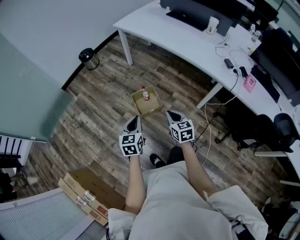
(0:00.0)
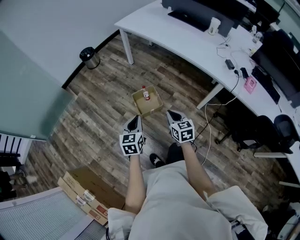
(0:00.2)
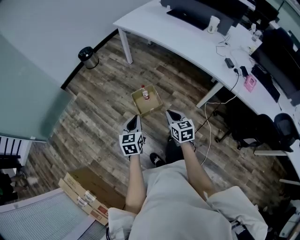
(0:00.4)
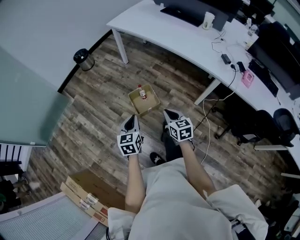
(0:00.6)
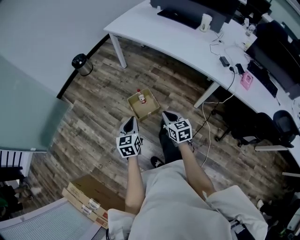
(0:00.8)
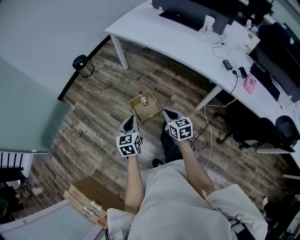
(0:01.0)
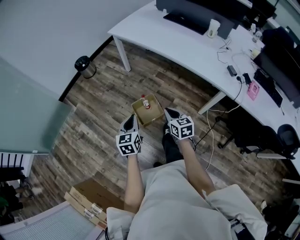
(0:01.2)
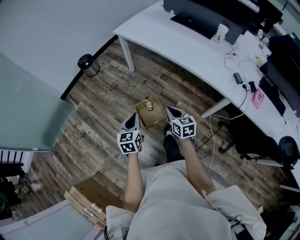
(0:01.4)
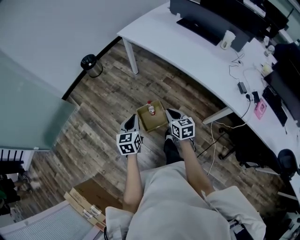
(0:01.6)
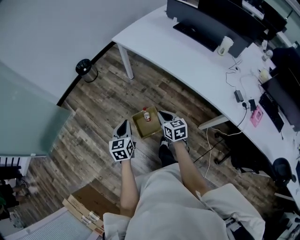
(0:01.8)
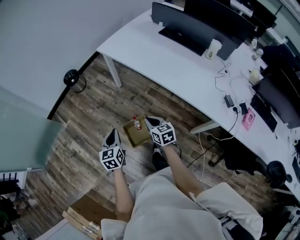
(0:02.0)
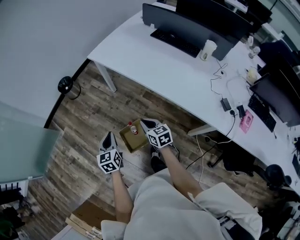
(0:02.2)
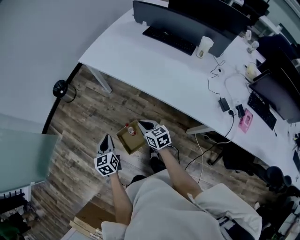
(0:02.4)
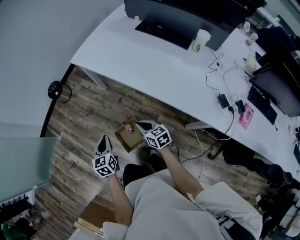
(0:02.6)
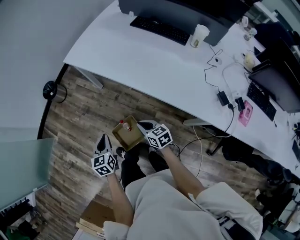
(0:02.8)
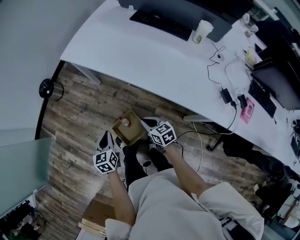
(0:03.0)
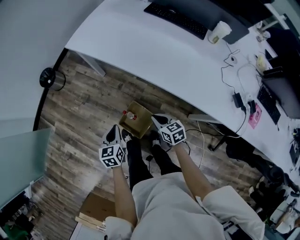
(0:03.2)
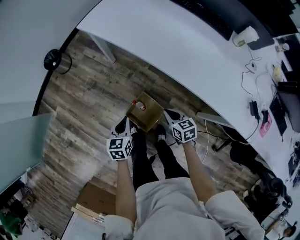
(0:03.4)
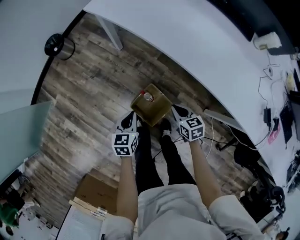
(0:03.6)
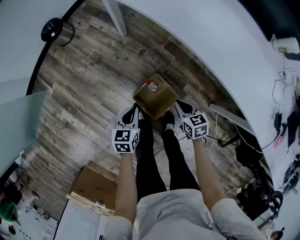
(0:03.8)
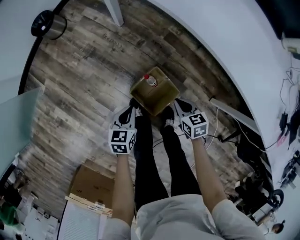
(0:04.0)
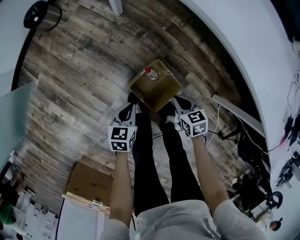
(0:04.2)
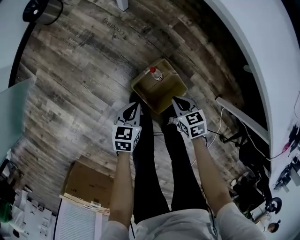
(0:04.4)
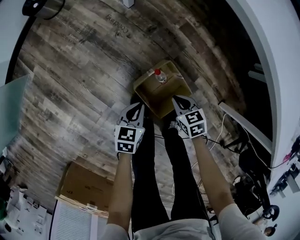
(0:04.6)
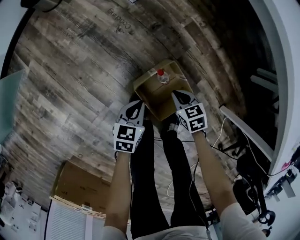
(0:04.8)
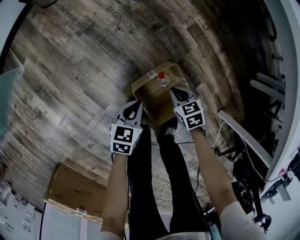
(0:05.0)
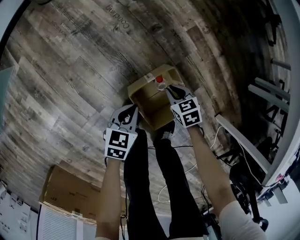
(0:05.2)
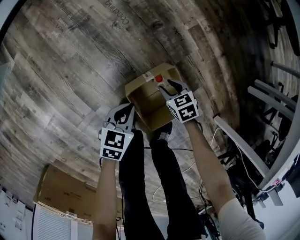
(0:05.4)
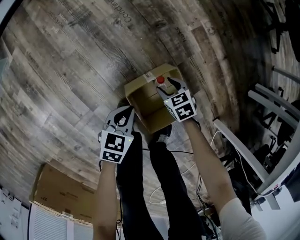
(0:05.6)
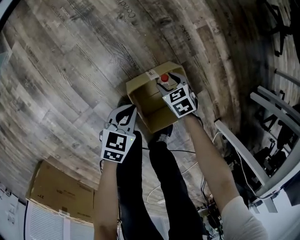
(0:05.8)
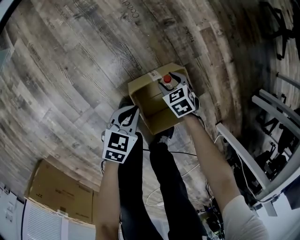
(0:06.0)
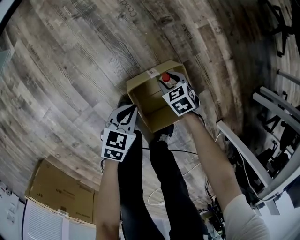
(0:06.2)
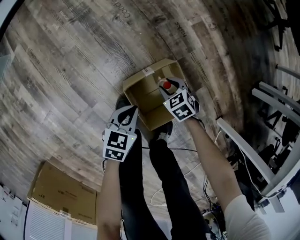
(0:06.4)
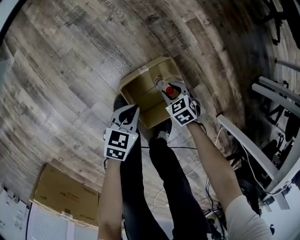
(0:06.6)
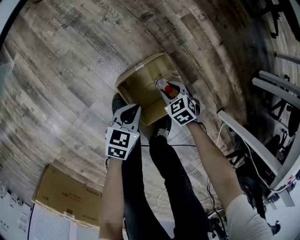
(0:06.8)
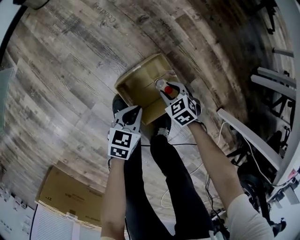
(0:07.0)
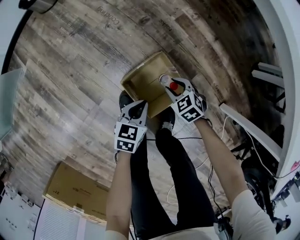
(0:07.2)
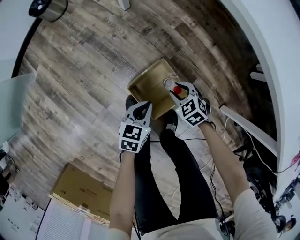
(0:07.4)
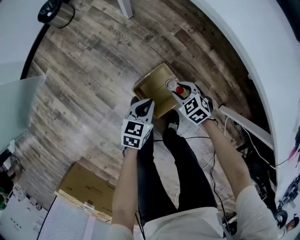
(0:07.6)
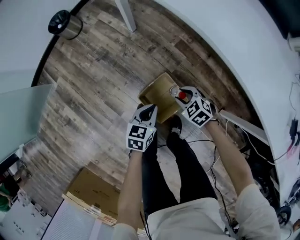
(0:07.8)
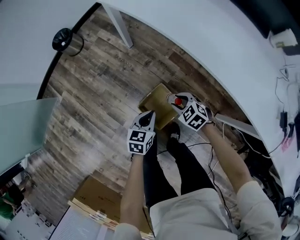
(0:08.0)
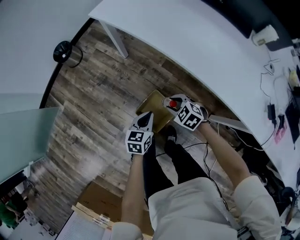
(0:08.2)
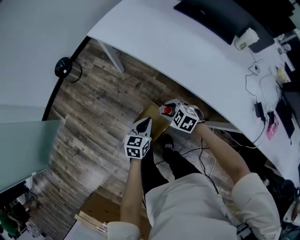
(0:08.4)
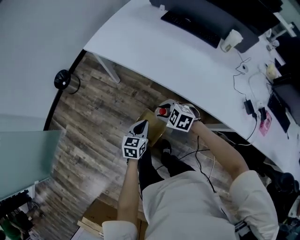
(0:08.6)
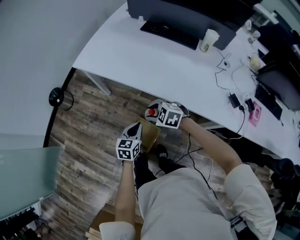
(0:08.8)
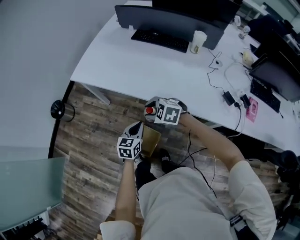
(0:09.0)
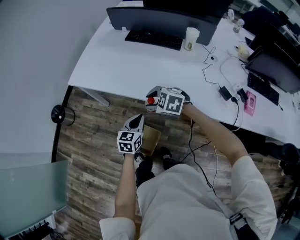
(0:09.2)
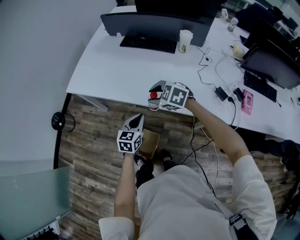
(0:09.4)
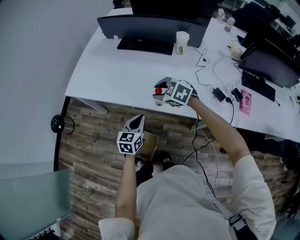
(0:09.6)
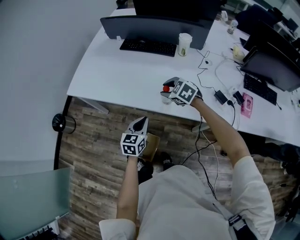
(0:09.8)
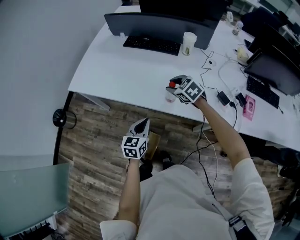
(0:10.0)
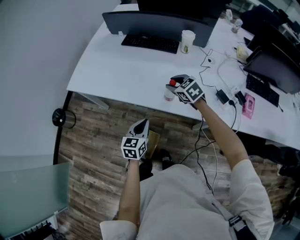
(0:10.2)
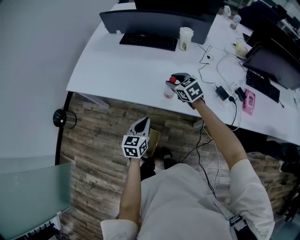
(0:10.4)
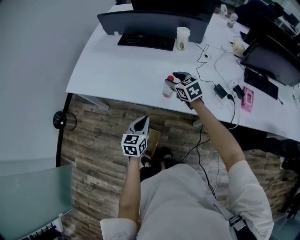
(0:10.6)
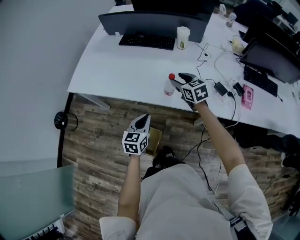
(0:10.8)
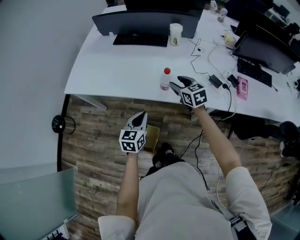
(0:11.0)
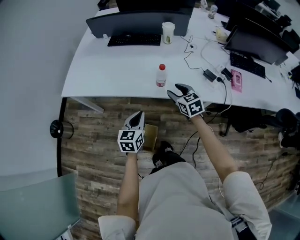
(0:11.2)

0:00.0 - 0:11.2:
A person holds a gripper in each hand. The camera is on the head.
0:00.0 - 0:01.6: Both grippers move forward, some 25 cm.
0:01.6 - 0:03.2: The two grippers go roughly 30 cm forward, downward and to the right.
0:03.2 - 0:04.8: Both grippers move downward, some 40 cm. The right gripper swivels roughly 30 degrees.
0:04.8 - 0:06.4: The right gripper shifts roughly 15 cm downward, swivels roughly 30 degrees, and opens; the left gripper is displaced downward by approximately 10 cm.
0:06.4 - 0:08.0: The two grippers go roughly 40 cm upward.
0:08.0 - 0:09.6: Both grippers move upward and to the right, some 40 cm. The left gripper rotates some 30 degrees.
0:09.6 - 0:11.2: The left gripper shifts approximately 5 cm backward. The right gripper shifts approximately 15 cm to the right and backward, and swivels about 50 degrees.

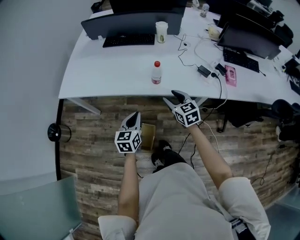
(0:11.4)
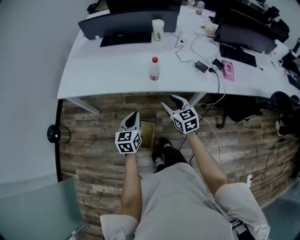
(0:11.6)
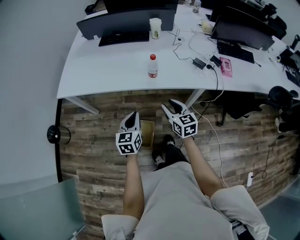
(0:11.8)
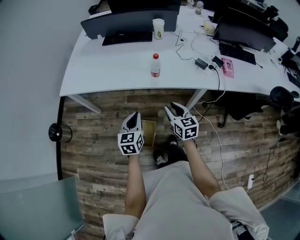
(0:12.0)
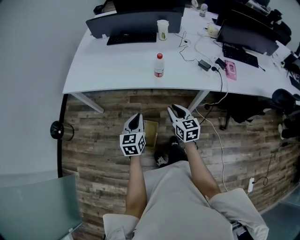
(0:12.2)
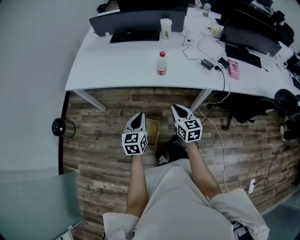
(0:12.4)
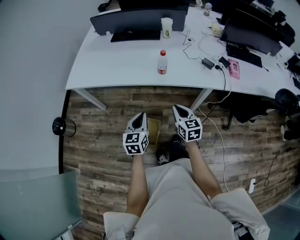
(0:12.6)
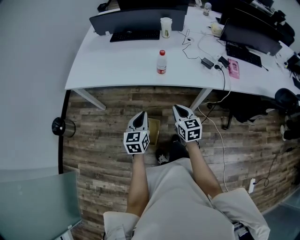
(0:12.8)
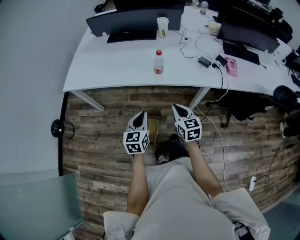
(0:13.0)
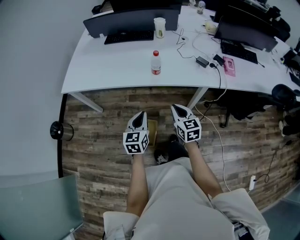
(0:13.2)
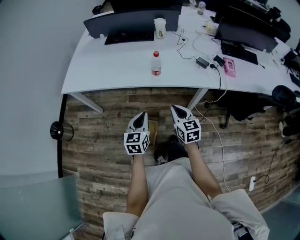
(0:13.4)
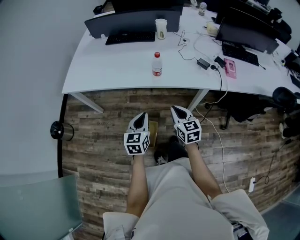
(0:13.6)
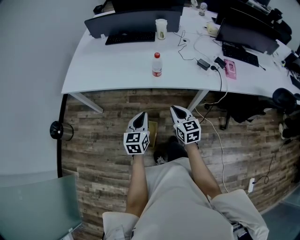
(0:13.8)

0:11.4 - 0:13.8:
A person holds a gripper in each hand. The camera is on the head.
0:11.4 - 0:12.6: The right gripper shifts approximately 15 cm backward, and closes, while the left gripper moves backward, roughly 10 cm.
0:12.6 - 0:13.8: There are only small adjustments of the grippers.

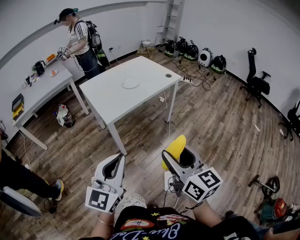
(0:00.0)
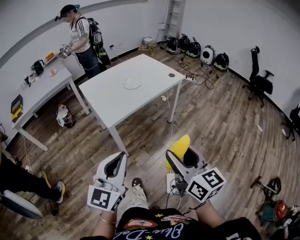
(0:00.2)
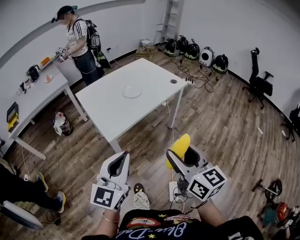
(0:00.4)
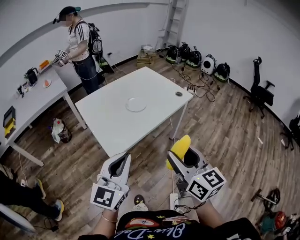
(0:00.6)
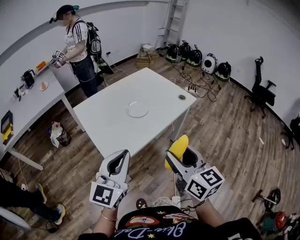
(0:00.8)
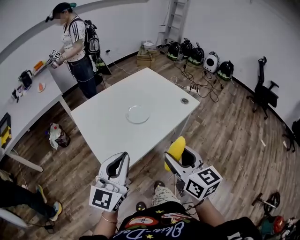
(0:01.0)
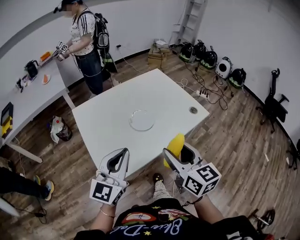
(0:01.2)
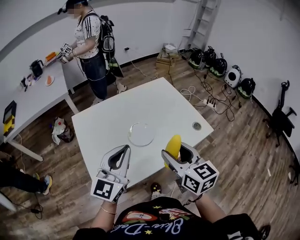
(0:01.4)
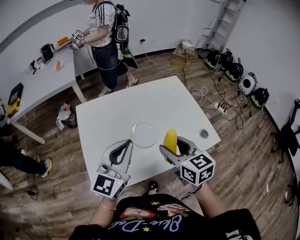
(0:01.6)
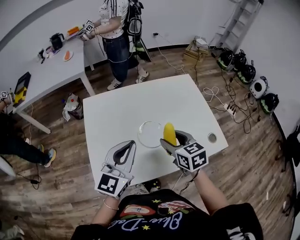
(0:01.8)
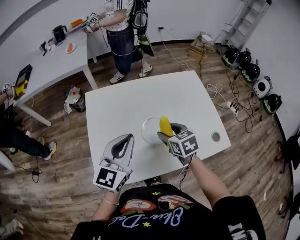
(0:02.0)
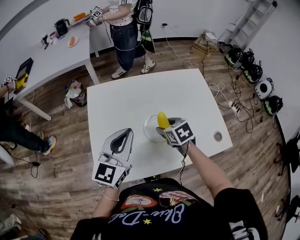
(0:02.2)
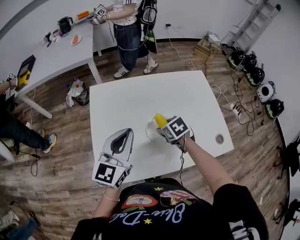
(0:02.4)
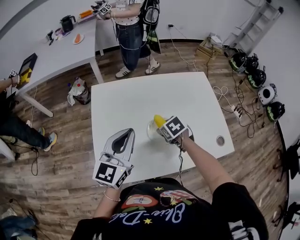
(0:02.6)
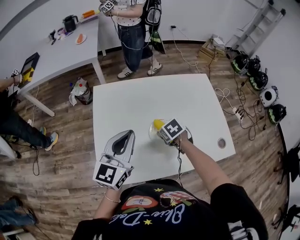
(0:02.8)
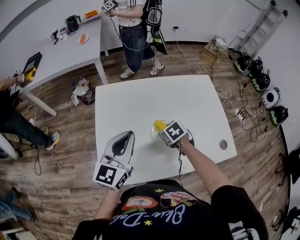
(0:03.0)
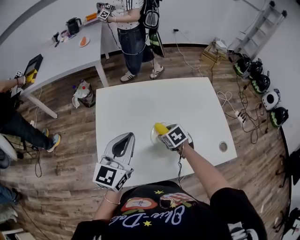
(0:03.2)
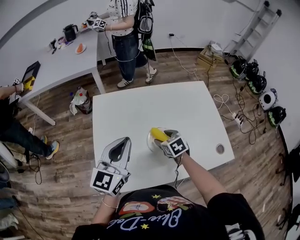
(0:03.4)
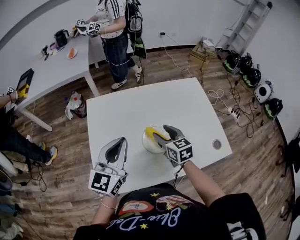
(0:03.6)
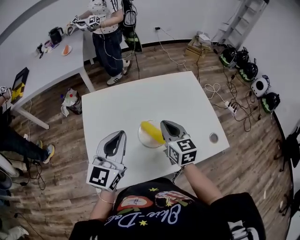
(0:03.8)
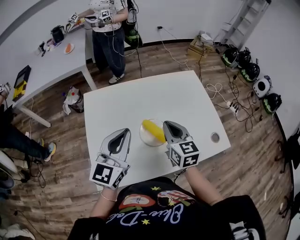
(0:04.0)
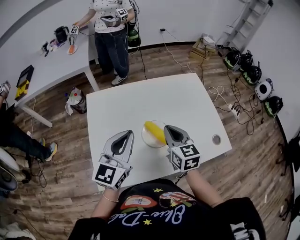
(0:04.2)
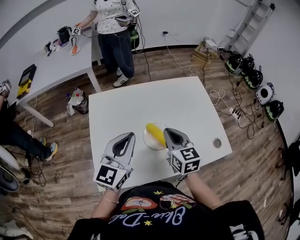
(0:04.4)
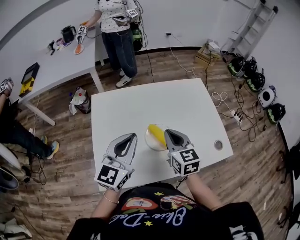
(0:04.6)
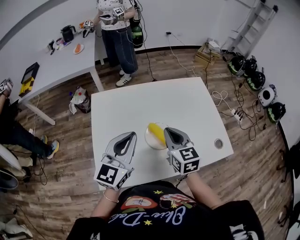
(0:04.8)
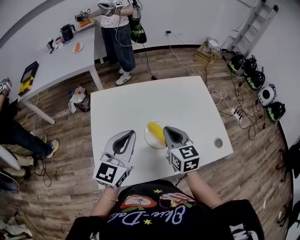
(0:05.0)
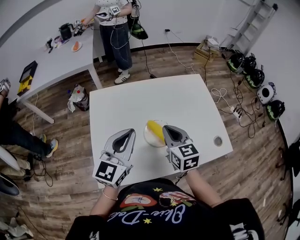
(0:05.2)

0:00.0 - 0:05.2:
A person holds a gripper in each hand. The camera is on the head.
0:00.0 - 0:01.8: The pair of grippers is taken about 70 cm. The right gripper points its fingers roughly 30 degrees further downward.
0:01.8 - 0:03.4: The right gripper moves downward, forward and to the left, roughly 20 cm, and swivels roughly 20 degrees. The left gripper goes some 10 cm to the left and forward.
0:03.4 - 0:05.2: The right gripper goes roughly 15 cm upward, changes its angle by about 30 degrees, and closes up.

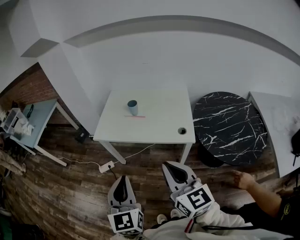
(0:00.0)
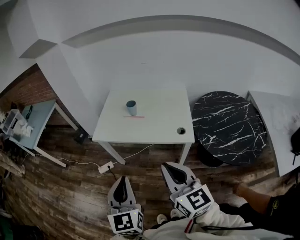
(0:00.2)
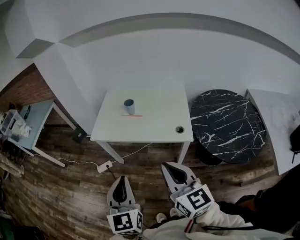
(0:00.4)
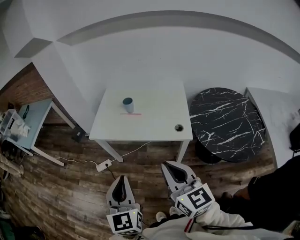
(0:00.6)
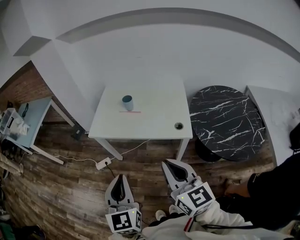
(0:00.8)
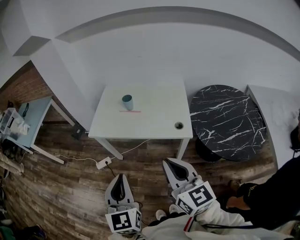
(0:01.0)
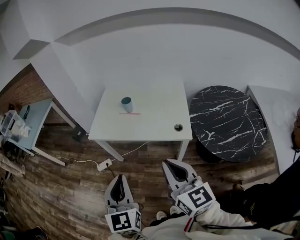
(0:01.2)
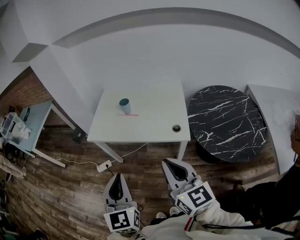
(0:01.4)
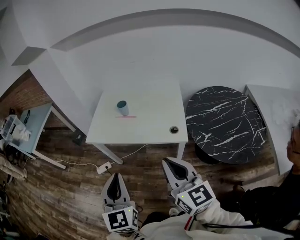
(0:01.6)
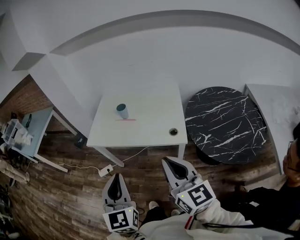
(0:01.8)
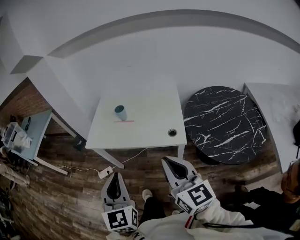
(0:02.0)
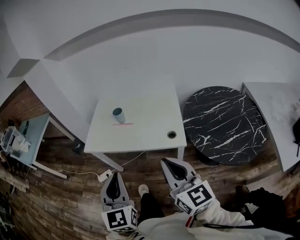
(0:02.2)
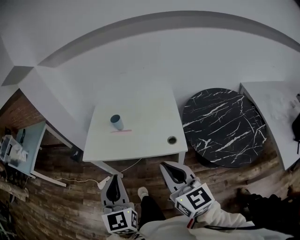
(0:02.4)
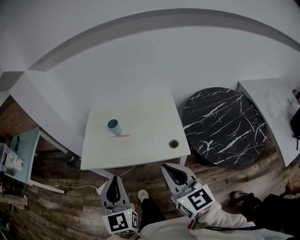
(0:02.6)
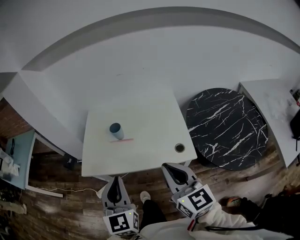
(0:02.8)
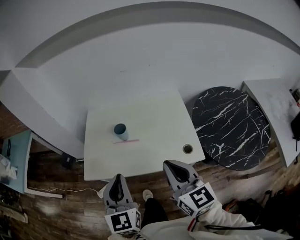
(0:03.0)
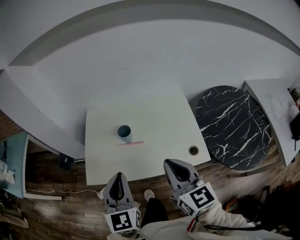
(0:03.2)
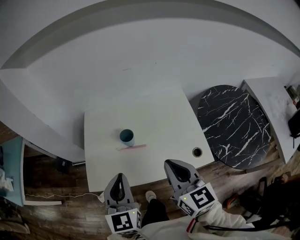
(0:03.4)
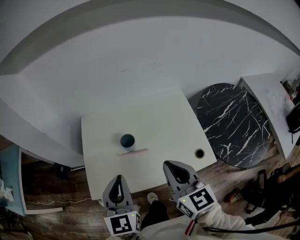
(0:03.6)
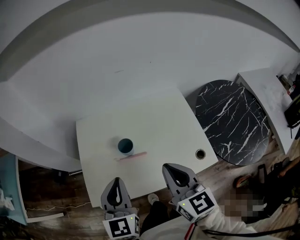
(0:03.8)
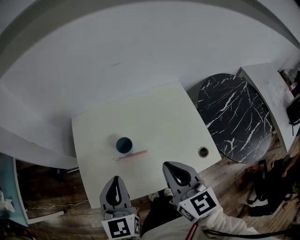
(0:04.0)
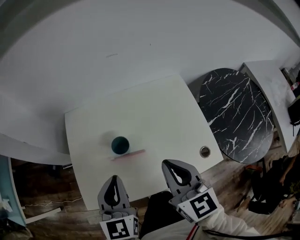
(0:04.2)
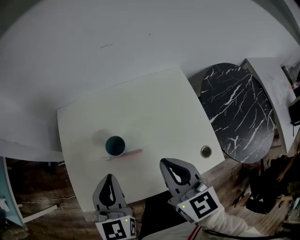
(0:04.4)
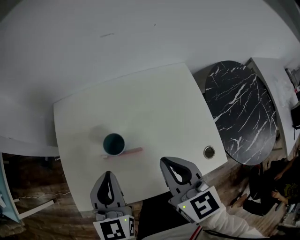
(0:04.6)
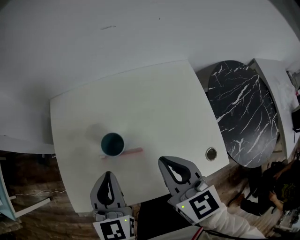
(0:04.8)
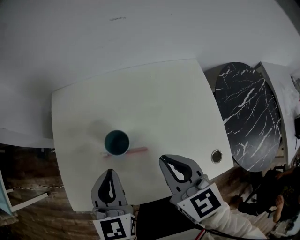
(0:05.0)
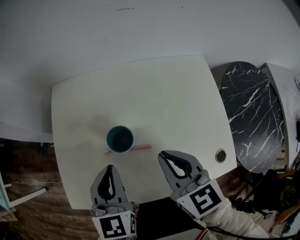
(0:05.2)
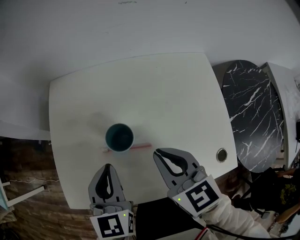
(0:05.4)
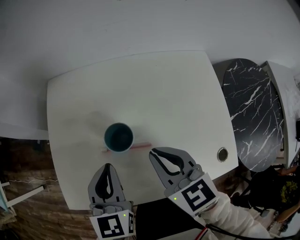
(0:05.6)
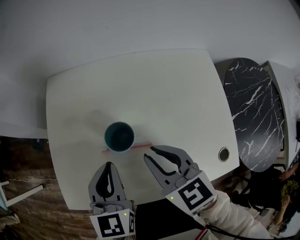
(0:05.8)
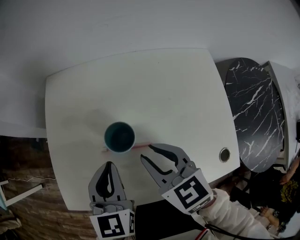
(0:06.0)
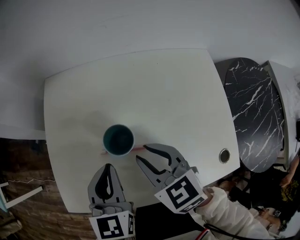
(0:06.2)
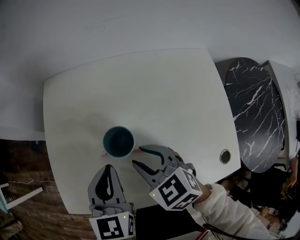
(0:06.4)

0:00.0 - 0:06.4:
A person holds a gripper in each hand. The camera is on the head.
0:00.0 - 0:01.6: The right gripper is displaced to the right by roughly 5 cm.
0:01.6 - 0:03.2: Both grippers move forward, about 30 cm.
0:03.2 - 0:04.8: Both grippers move forward and downward, some 25 cm.
0:04.8 - 0:06.4: The left gripper is displaced downward by some 10 cm; the right gripper moves downward and to the left, some 15 cm, turns by approximately 40 degrees, and opens its fingers.
